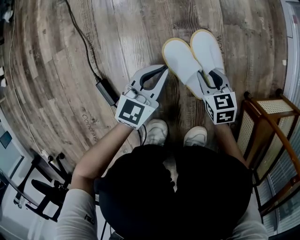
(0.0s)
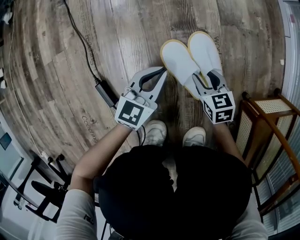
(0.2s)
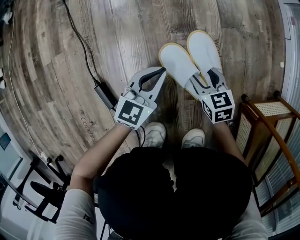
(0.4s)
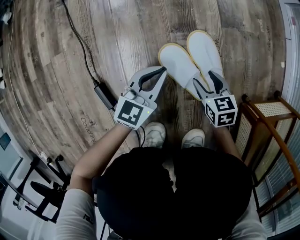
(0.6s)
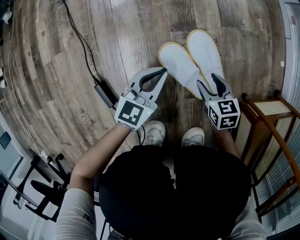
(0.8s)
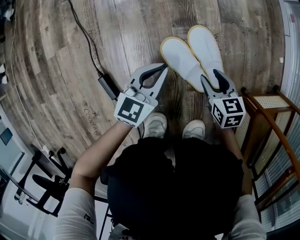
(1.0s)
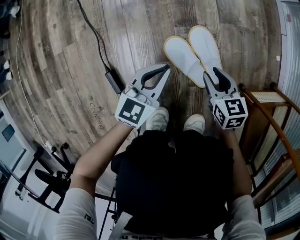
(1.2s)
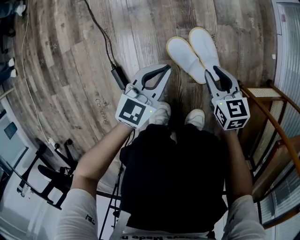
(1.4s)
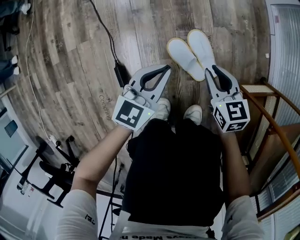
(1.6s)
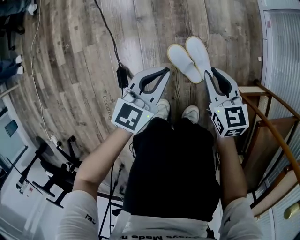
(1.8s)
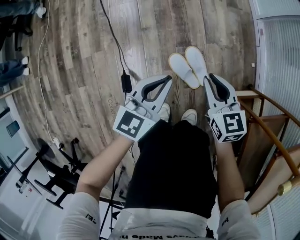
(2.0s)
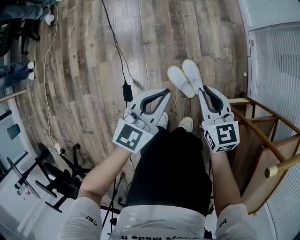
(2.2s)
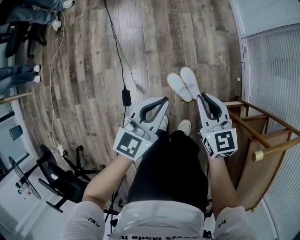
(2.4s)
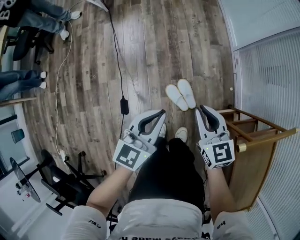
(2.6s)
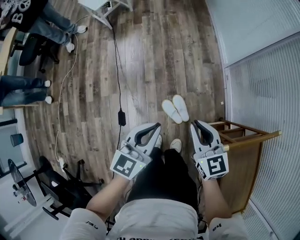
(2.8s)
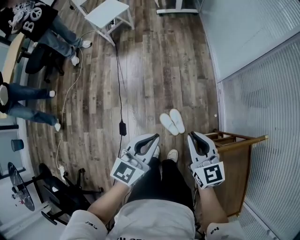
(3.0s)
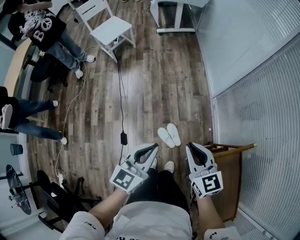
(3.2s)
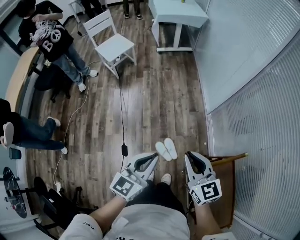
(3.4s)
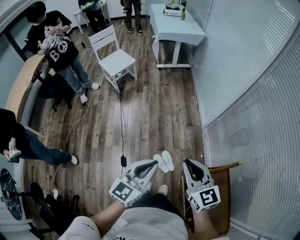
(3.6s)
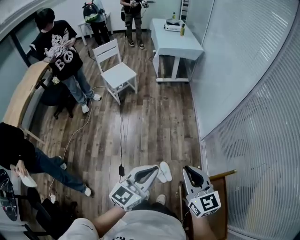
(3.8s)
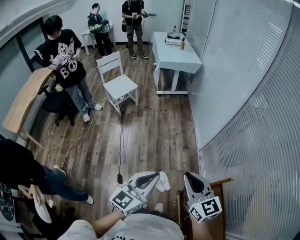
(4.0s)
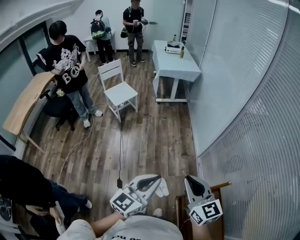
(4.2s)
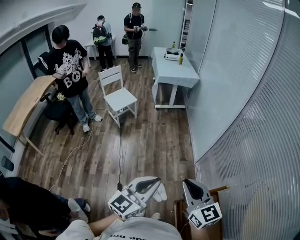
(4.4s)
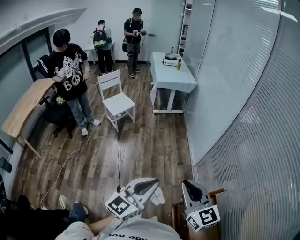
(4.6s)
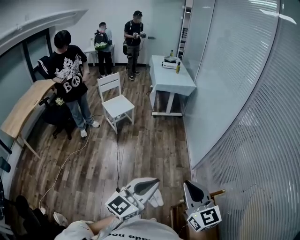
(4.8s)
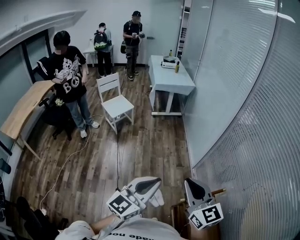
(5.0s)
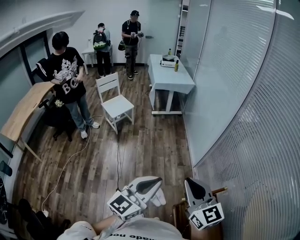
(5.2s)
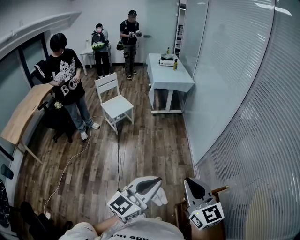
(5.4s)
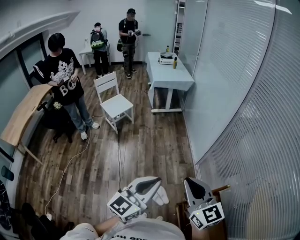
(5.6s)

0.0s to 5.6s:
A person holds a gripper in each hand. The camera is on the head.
0.0s to 1.4s: Both grippers travel together upward, approximately 15 cm. The right gripper opens, then closes again.
1.4s to 2.8s: Both grippers move upward, some 60 cm. The right gripper turns by roughly 20 degrees.
2.8s to 4.2s: Both grippers travel together upward, about 40 cm.
4.2s to 5.6s: Both grippers travel together upward, roughly 5 cm.

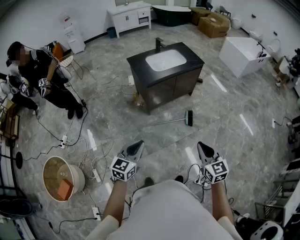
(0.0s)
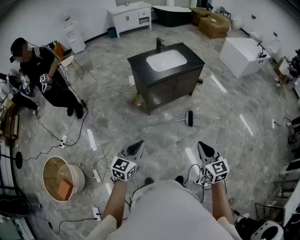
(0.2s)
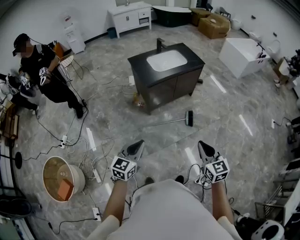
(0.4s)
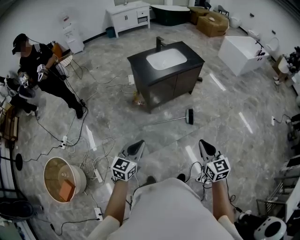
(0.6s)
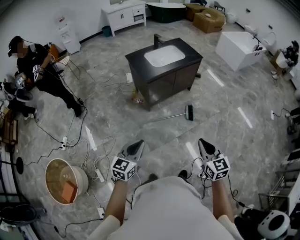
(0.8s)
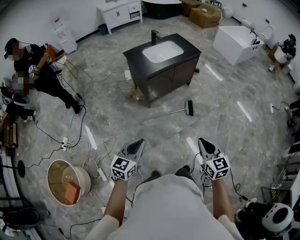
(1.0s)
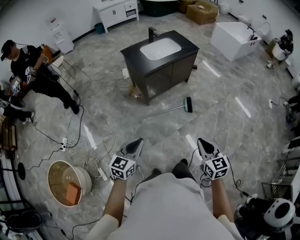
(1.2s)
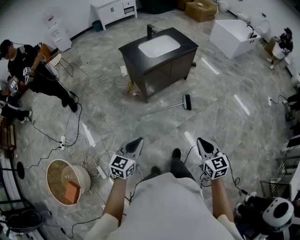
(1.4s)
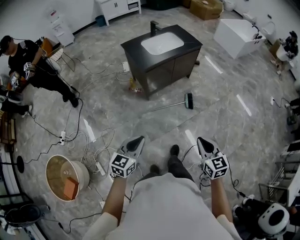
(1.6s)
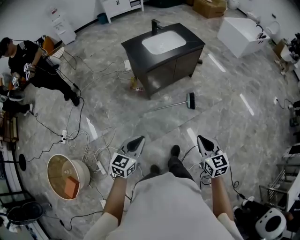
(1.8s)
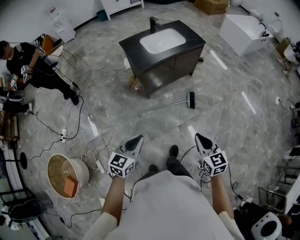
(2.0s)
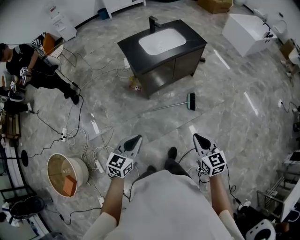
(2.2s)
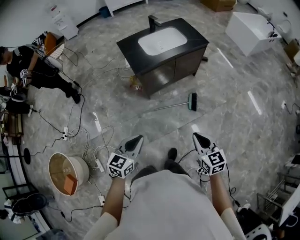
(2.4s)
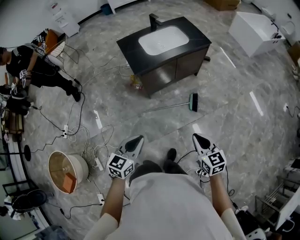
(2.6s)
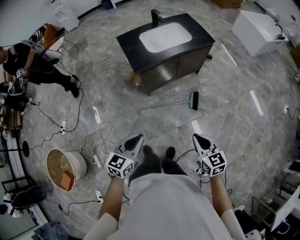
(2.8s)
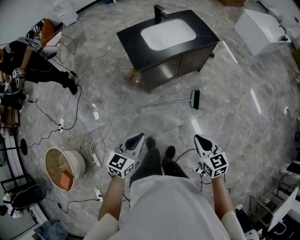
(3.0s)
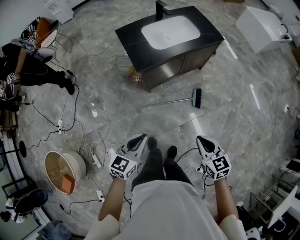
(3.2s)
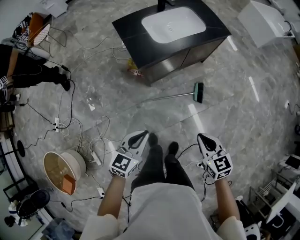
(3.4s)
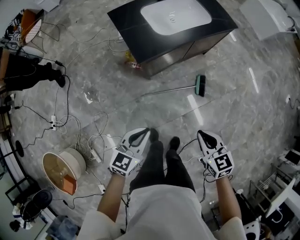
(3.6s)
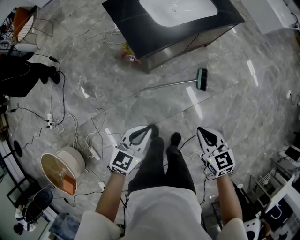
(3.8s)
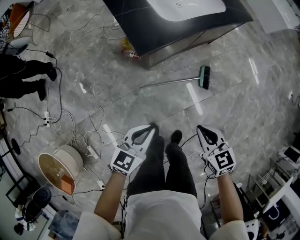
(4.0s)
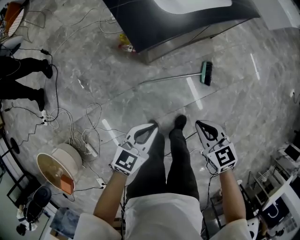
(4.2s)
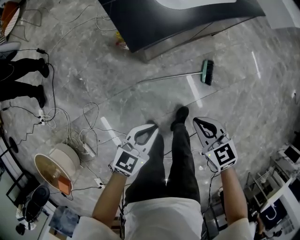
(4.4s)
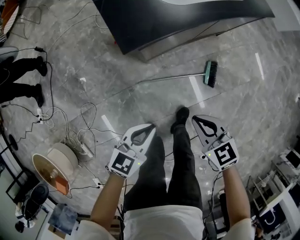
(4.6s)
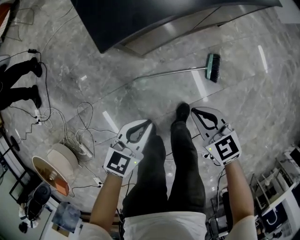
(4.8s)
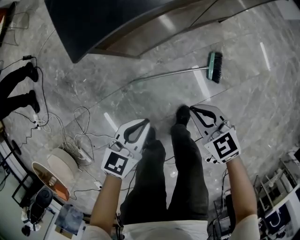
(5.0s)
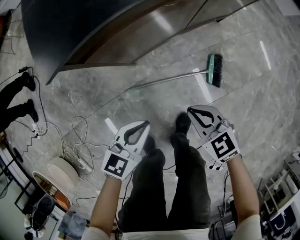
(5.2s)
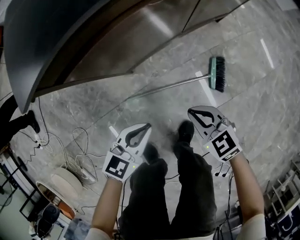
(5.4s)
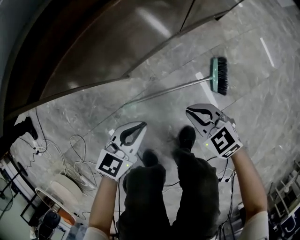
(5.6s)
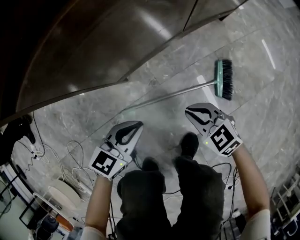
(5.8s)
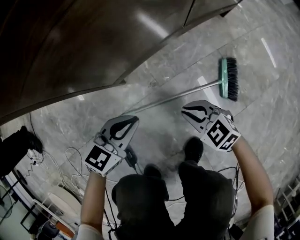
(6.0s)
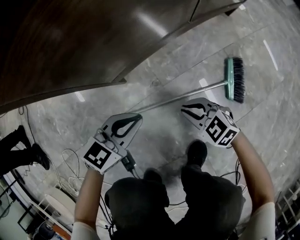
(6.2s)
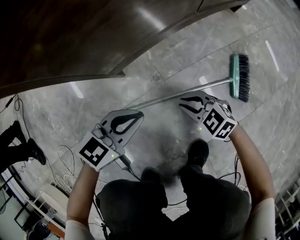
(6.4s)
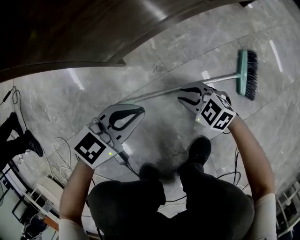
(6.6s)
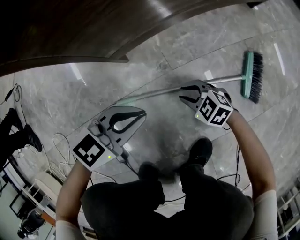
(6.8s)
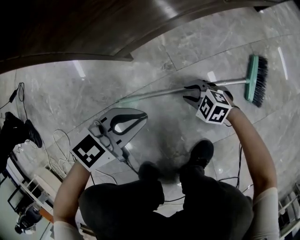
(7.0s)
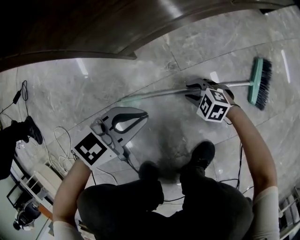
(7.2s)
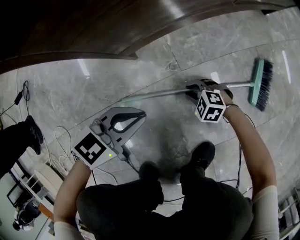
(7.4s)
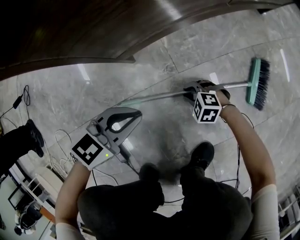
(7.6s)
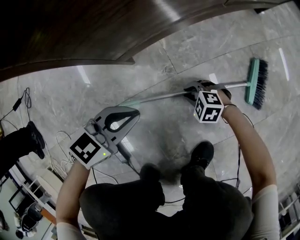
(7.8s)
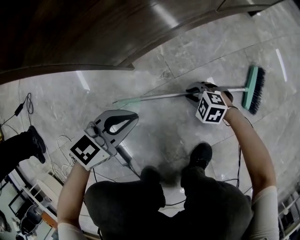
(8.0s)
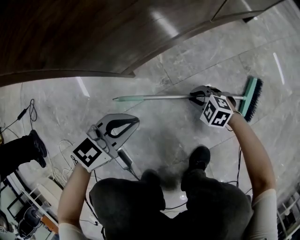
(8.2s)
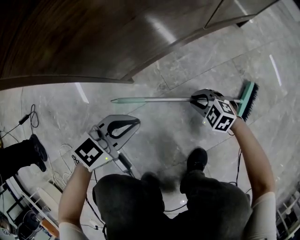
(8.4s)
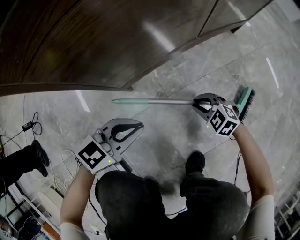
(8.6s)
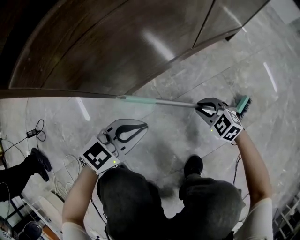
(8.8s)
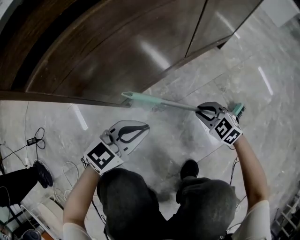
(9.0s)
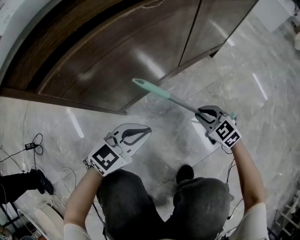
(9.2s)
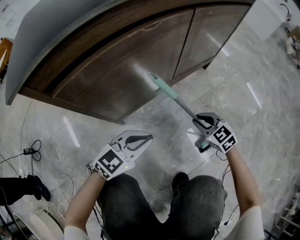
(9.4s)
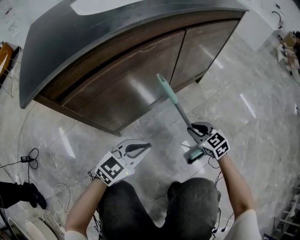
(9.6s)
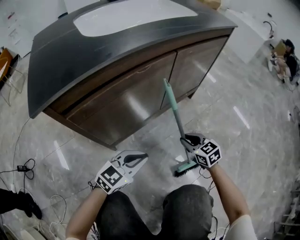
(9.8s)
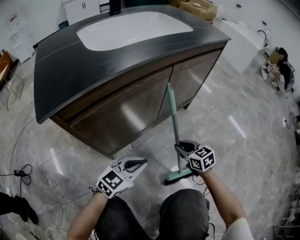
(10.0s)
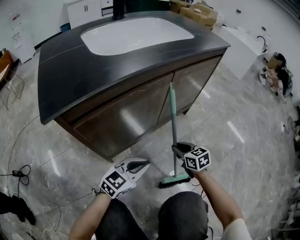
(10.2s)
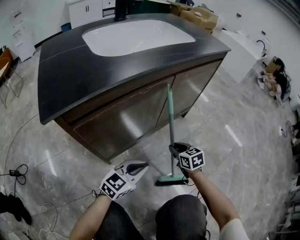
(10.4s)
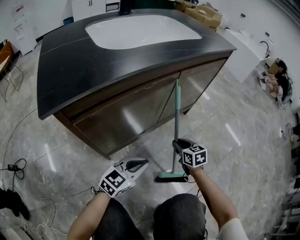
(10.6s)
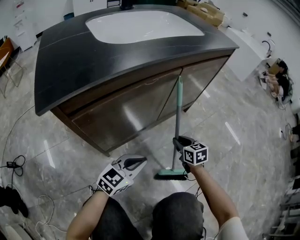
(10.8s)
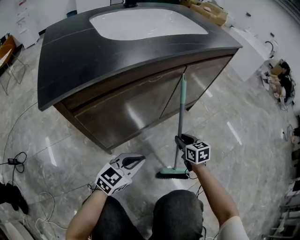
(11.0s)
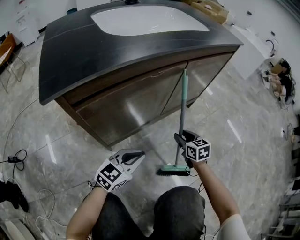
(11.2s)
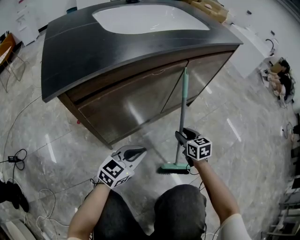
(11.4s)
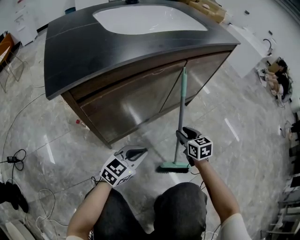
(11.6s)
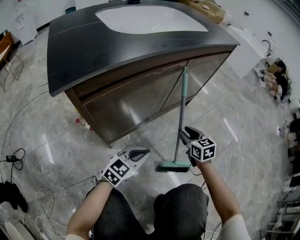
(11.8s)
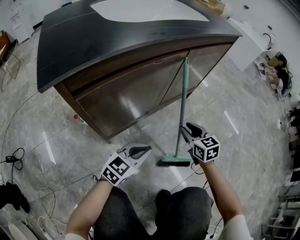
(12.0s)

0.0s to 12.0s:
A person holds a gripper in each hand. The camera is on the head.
0.0s to 1.6s: The two grippers go about 5 cm to the left.
1.6s to 3.0s: The right gripper heads forward, covering roughly 25 cm. Meanwhile the left gripper heads forward and to the right, covering about 25 cm.
3.0s to 4.4s: The right gripper goes some 35 cm downward, forward and to the left. The left gripper is displaced downward and forward by approximately 35 cm.
4.4s to 6.0s: Both grippers travel together downward, approximately 50 cm. The right gripper rotates some 20 degrees.
6.0s to 7.6s: The right gripper moves downward, some 25 cm, and changes its angle by some 40 degrees. Meanwhile the left gripper shifts some 10 cm downward.
7.6s to 9.0s: The left gripper goes roughly 15 cm upward; the right gripper travels upward by roughly 25 cm, and turns by approximately 30 degrees.
9.0s to 10.4s: The left gripper moves to the right and upward, some 10 cm, while the right gripper moves upward and forward, about 15 cm, and rotates some 40 degrees.
10.4s to 12.0s: The right gripper heads upward, covering about 5 cm.

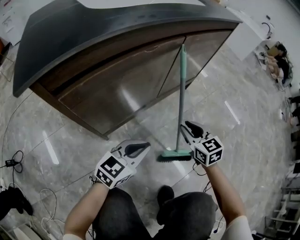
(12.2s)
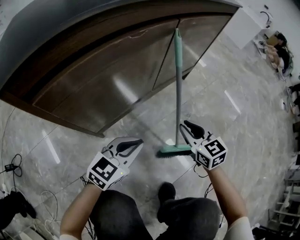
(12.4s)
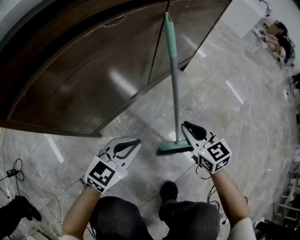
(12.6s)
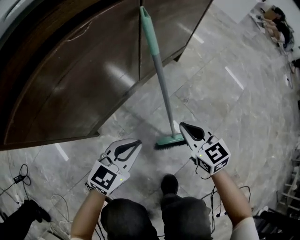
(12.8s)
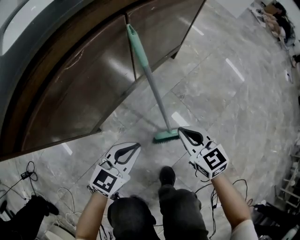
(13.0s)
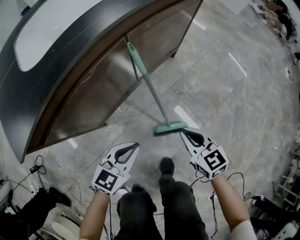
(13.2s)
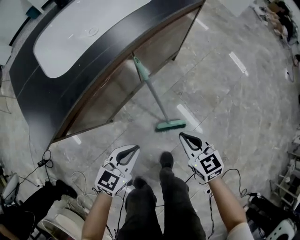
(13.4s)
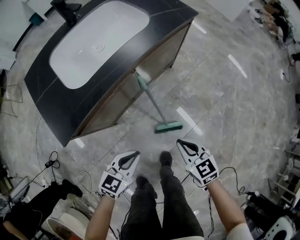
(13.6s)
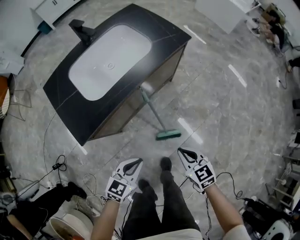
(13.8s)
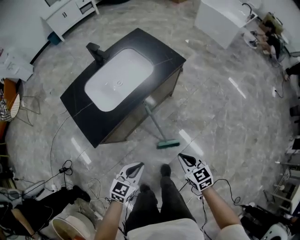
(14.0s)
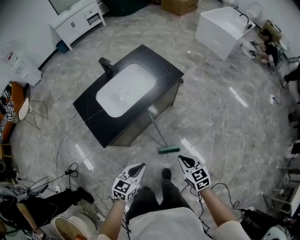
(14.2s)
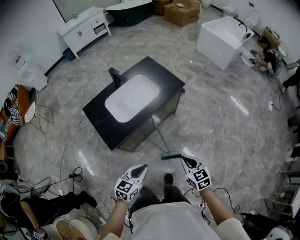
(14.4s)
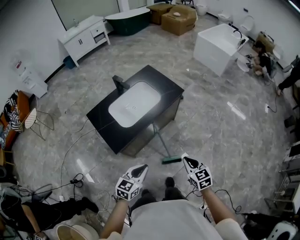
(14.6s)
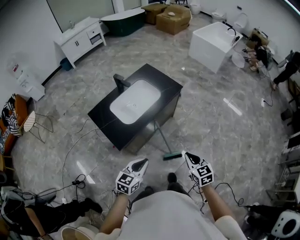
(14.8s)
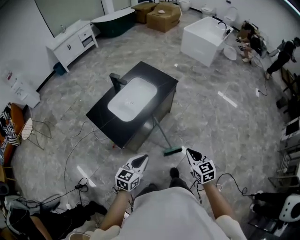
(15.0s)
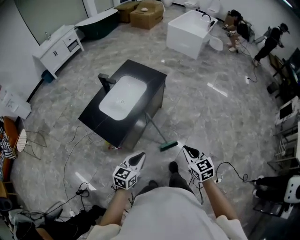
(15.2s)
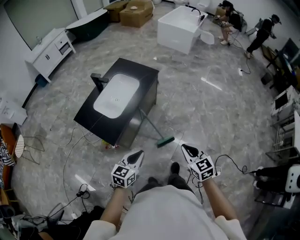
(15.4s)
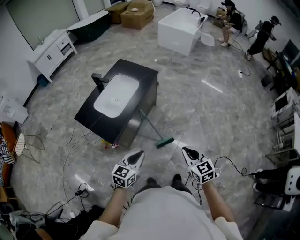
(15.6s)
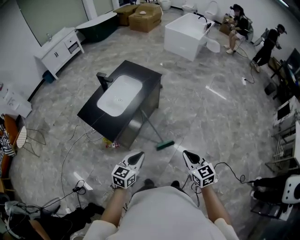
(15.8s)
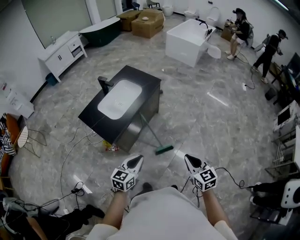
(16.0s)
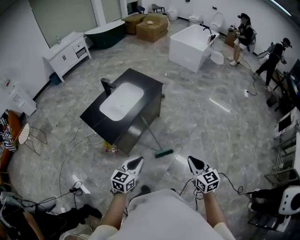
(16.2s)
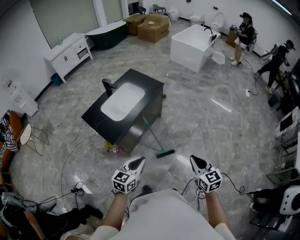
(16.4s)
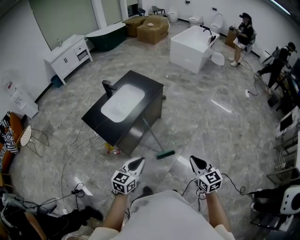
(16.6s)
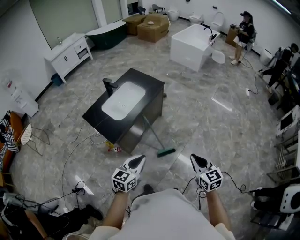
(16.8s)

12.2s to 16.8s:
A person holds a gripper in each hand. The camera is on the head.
12.2s to 13.8s: The grippers both shift upward by about 35 cm. The right gripper closes its fingers.
13.8s to 15.2s: The right gripper moves upward and backward, roughly 35 cm, and turns by roughly 20 degrees, while the left gripper is displaced upward by some 30 cm.
15.2s to 16.8s: The right gripper is displaced to the right, backward and upward by about 15 cm, while the left gripper travels backward, to the right and upward by approximately 15 cm.

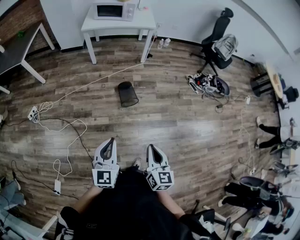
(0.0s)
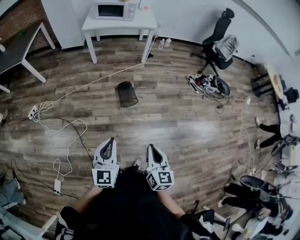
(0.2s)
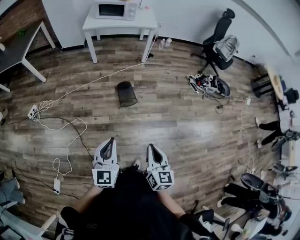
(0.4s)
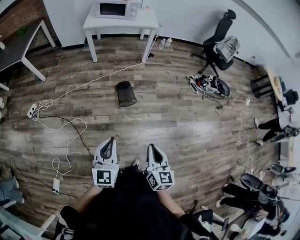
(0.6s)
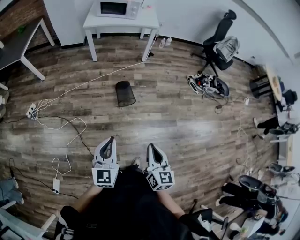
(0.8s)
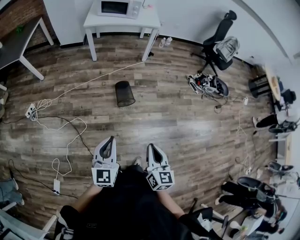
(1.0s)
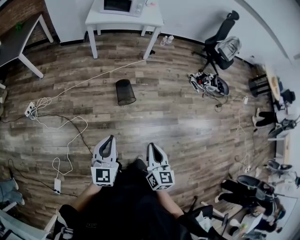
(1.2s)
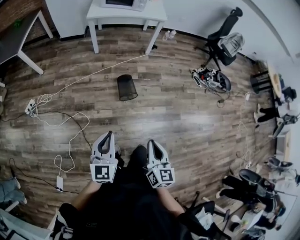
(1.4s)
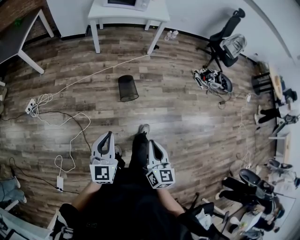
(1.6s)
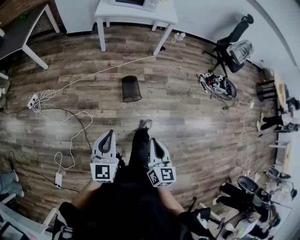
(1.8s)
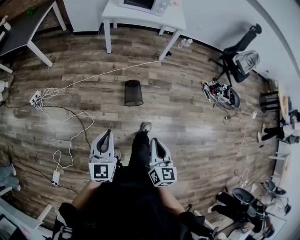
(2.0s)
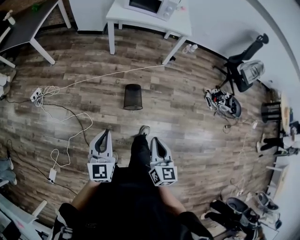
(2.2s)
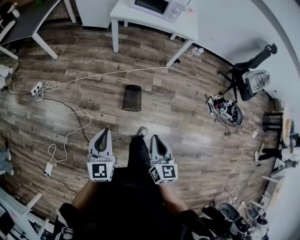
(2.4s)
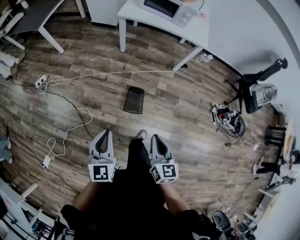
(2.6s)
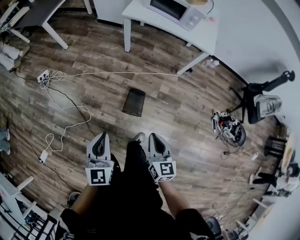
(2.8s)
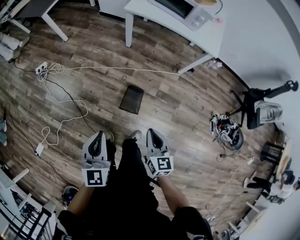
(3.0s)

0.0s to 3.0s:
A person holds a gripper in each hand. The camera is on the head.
0.0s to 1.6s: The two grippers go approximately 15 cm to the left and forward.
1.6s to 3.0s: The left gripper ends up some 25 cm from where it was, and swivels approximately 30 degrees, while the right gripper shifts by about 40 cm, and swivels roughly 30 degrees.
